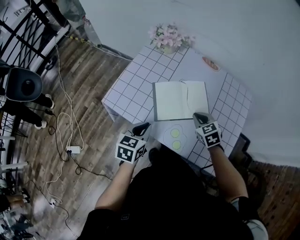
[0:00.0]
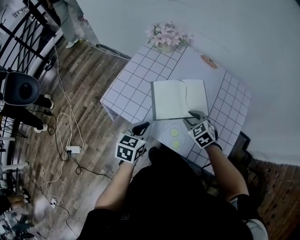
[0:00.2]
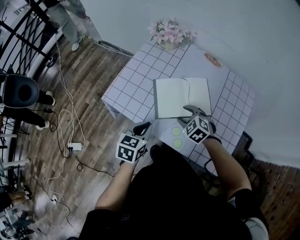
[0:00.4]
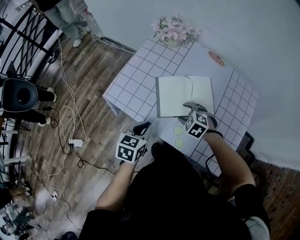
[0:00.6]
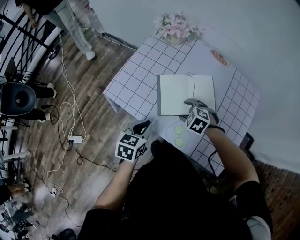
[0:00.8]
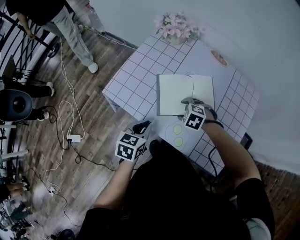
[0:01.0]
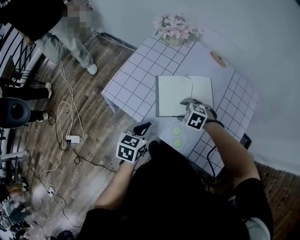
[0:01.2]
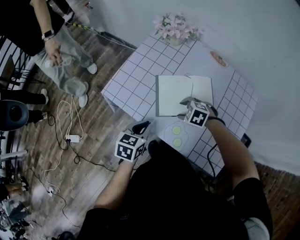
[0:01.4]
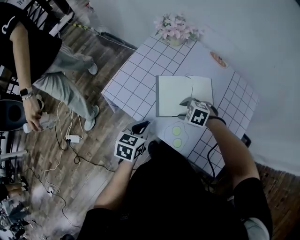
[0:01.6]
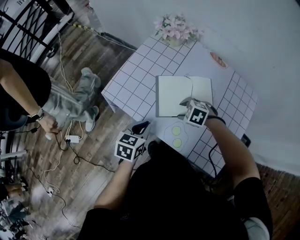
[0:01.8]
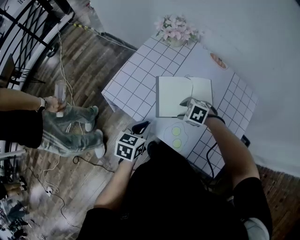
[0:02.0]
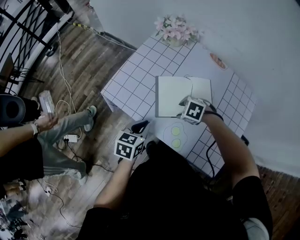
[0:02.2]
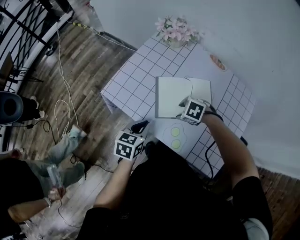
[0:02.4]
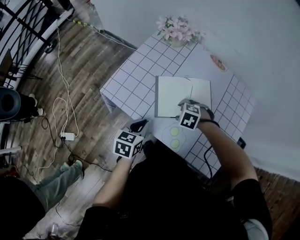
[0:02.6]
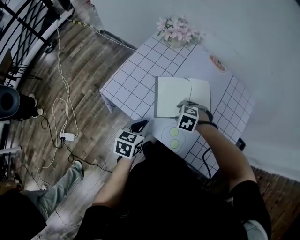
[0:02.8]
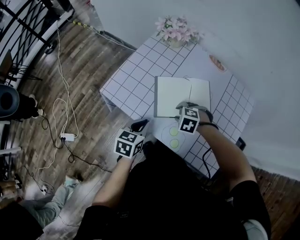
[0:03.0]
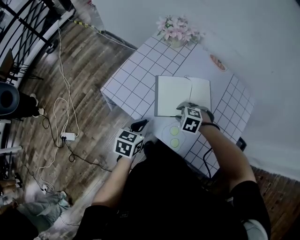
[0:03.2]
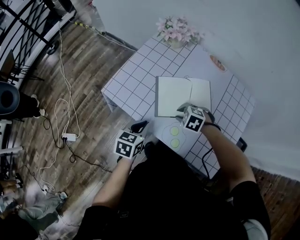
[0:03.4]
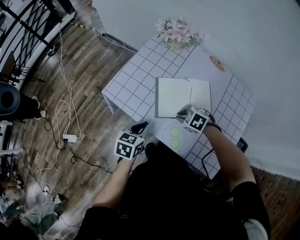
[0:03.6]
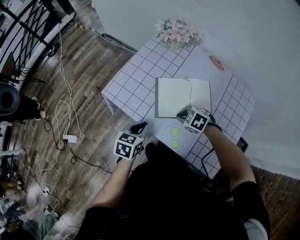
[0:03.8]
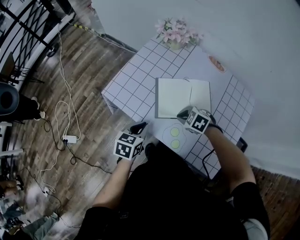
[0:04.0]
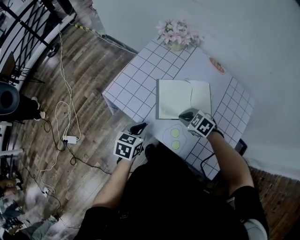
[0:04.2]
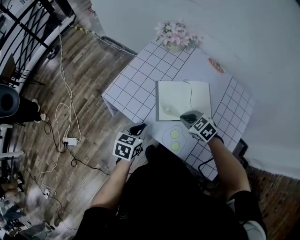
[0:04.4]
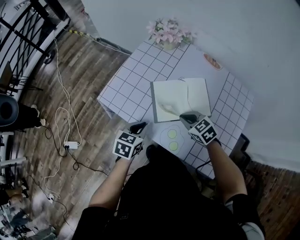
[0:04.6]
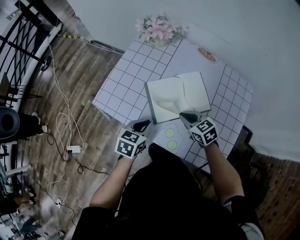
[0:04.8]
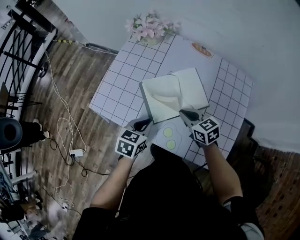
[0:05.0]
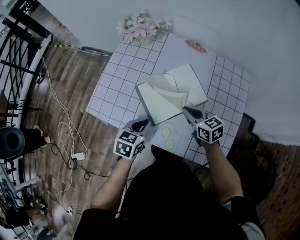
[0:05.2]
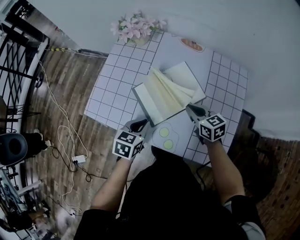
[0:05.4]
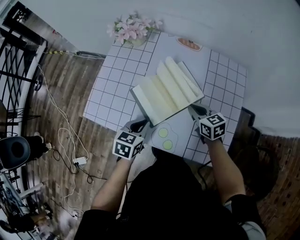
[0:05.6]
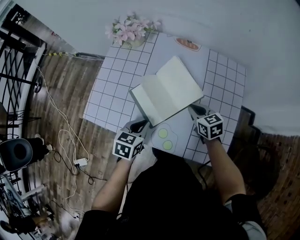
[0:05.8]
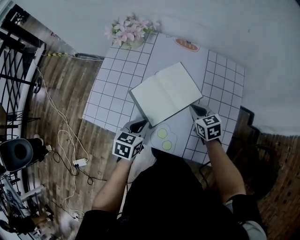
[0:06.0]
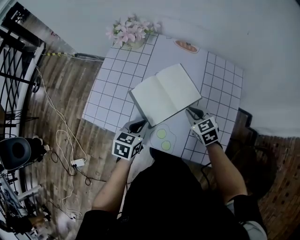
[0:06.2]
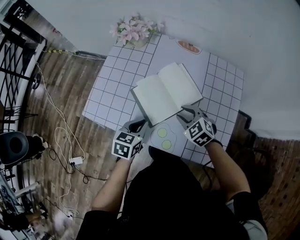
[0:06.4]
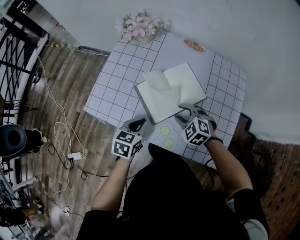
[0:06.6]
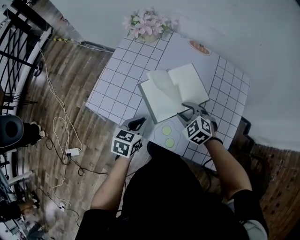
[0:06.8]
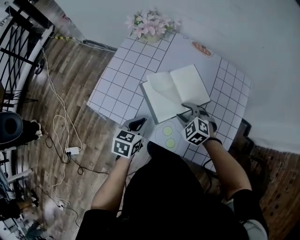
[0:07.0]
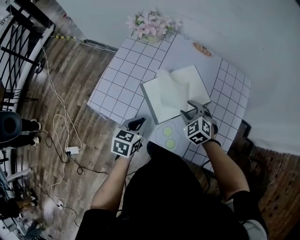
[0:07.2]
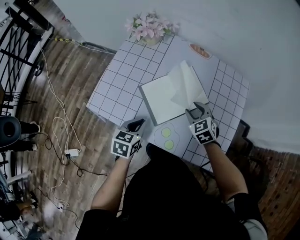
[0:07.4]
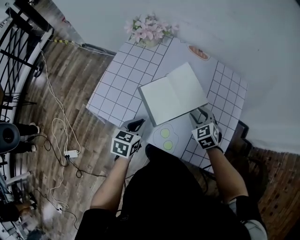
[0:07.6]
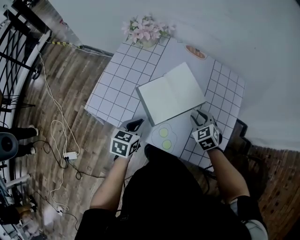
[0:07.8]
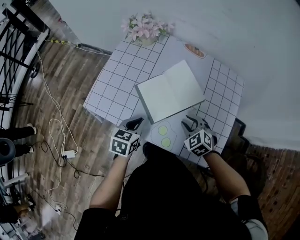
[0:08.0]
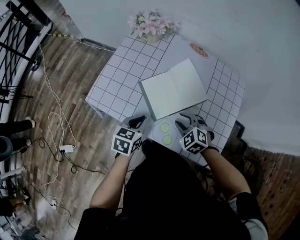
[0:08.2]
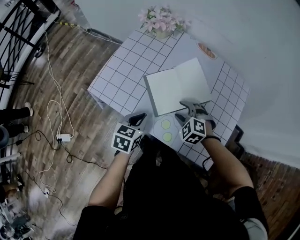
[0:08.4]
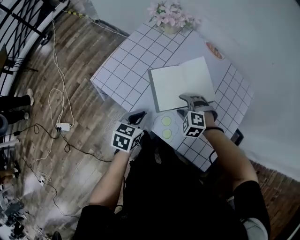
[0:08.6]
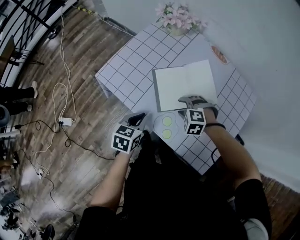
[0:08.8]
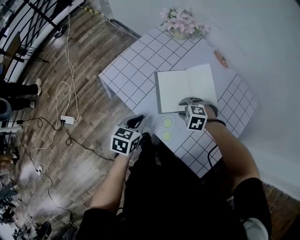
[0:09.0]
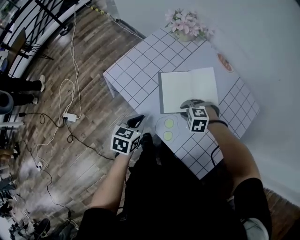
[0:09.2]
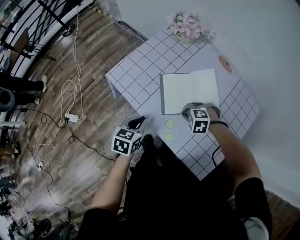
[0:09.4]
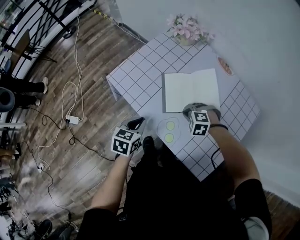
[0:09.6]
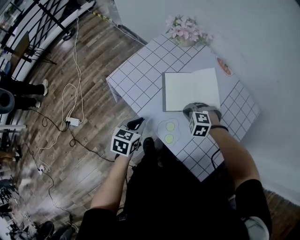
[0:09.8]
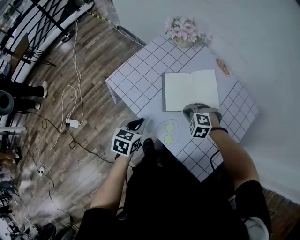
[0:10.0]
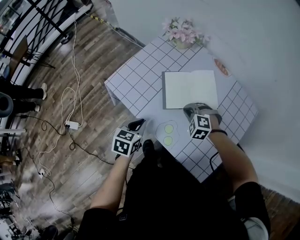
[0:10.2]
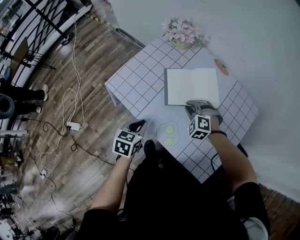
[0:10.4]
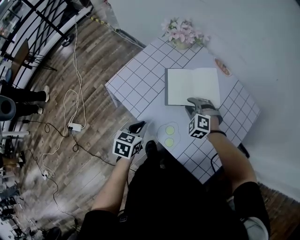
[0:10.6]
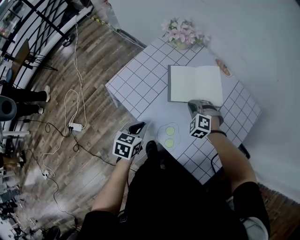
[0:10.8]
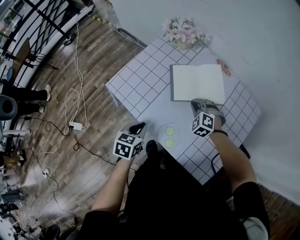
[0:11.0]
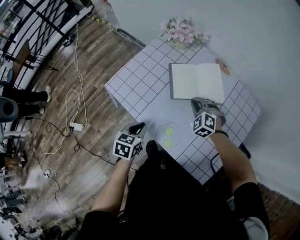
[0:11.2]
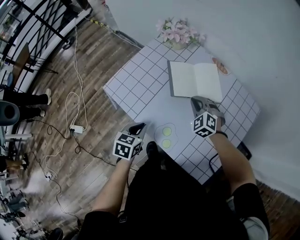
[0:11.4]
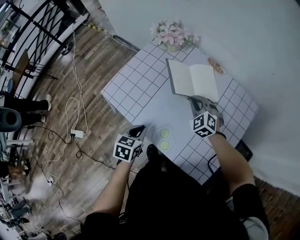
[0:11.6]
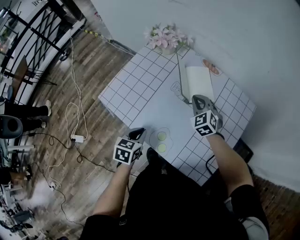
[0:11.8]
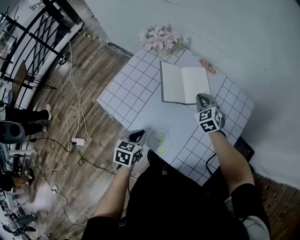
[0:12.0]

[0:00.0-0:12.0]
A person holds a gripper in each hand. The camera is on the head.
0:00.0 to 0:01.6: The right gripper changes place by approximately 10 cm, changes its angle by approximately 50 degrees, and opens up.
0:01.6 to 0:03.0: The grippers stay close to where they were, moving slightly.
0:03.0 to 0:04.4: The right gripper turns by approximately 30 degrees, and closes its fingers.
0:04.4 to 0:06.0: The right gripper shifts by some 15 cm, and rotates some 50 degrees, while the left gripper ends up roughly 10 cm from where it was.
0:06.0 to 0:07.6: The right gripper moves about 10 cm to the left and comes back, turns by some 30 degrees, and opens up.
0:07.6 to 0:09.0: The left gripper ends up some 5 cm from where it was; the right gripper changes place by some 10 cm, and rotates approximately 70 degrees.
0:09.0 to 0:10.4: The right gripper changes place by roughly 5 cm, changes its angle by approximately 30 degrees, and closes up.
0:10.4 to 0:12.0: The right gripper shifts approximately 15 cm to the right, forward and upward, and twists approximately 40 degrees clockwise, seen from behind; the left gripper moves to the right, approximately 5 cm.

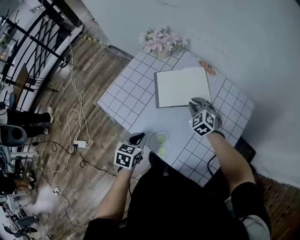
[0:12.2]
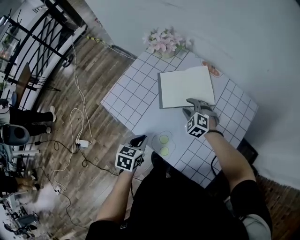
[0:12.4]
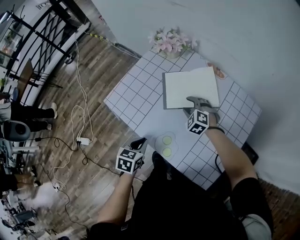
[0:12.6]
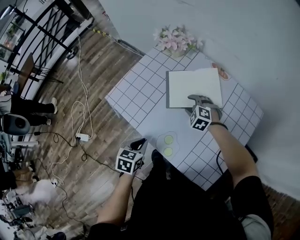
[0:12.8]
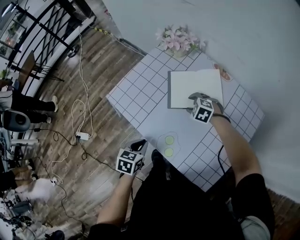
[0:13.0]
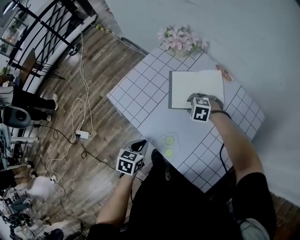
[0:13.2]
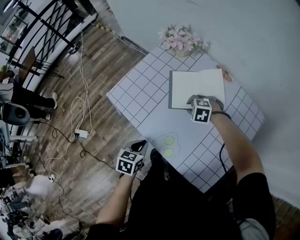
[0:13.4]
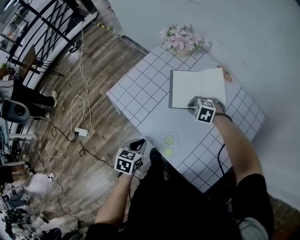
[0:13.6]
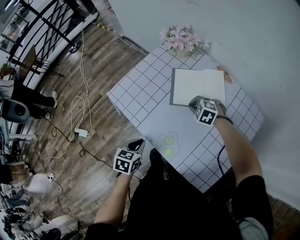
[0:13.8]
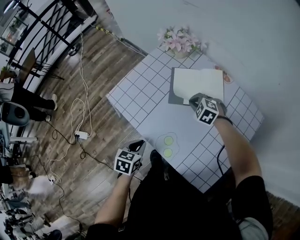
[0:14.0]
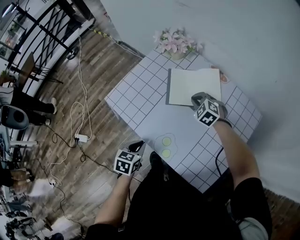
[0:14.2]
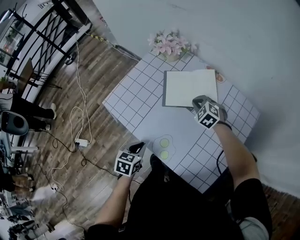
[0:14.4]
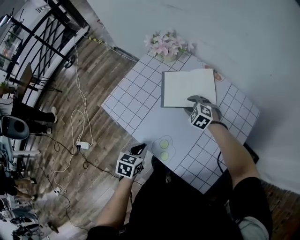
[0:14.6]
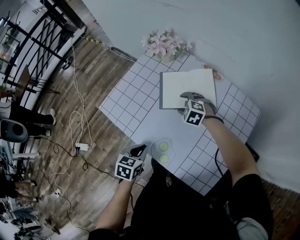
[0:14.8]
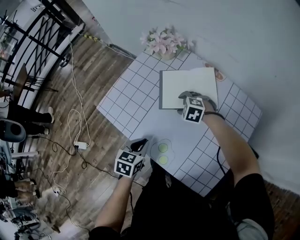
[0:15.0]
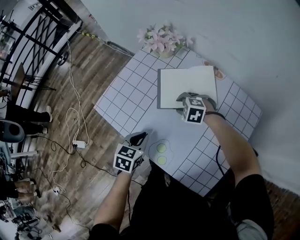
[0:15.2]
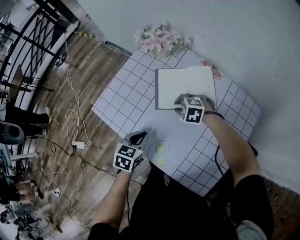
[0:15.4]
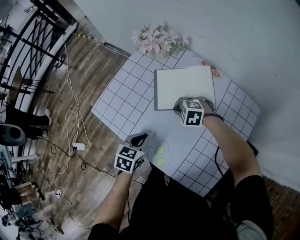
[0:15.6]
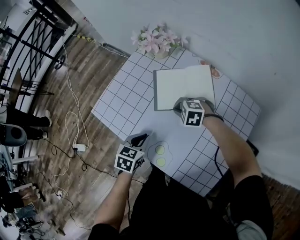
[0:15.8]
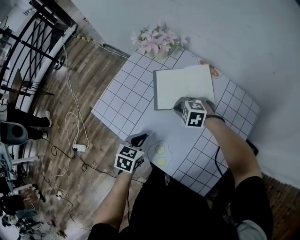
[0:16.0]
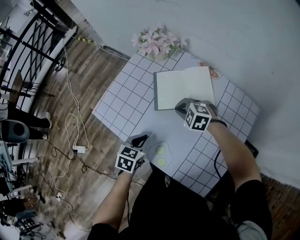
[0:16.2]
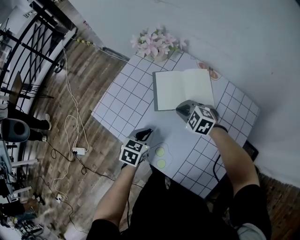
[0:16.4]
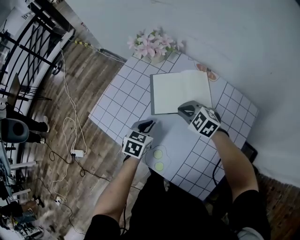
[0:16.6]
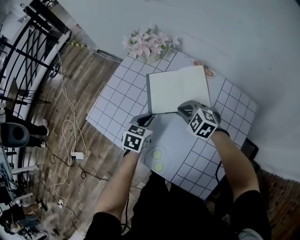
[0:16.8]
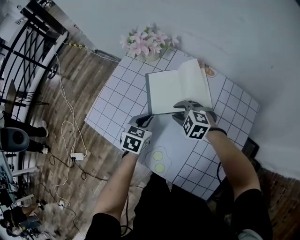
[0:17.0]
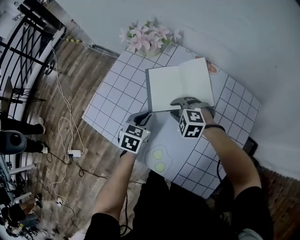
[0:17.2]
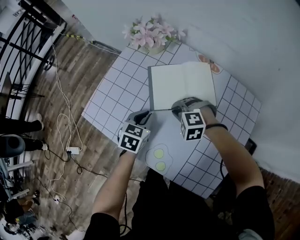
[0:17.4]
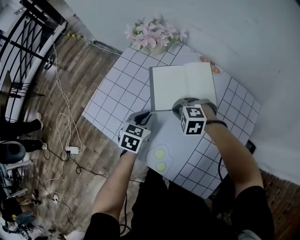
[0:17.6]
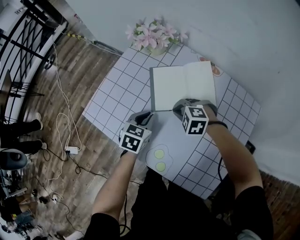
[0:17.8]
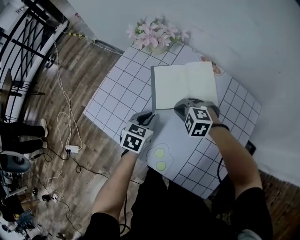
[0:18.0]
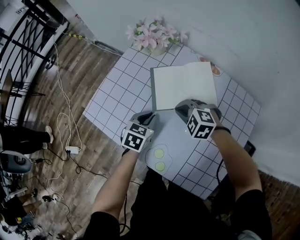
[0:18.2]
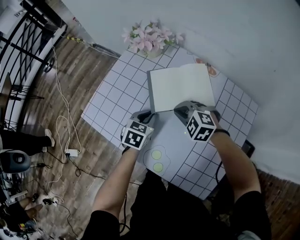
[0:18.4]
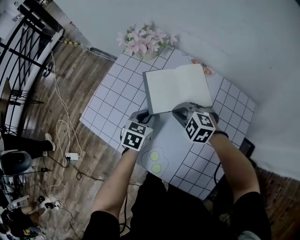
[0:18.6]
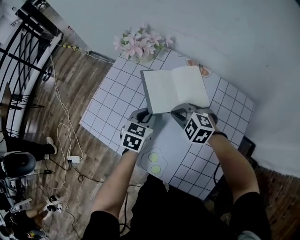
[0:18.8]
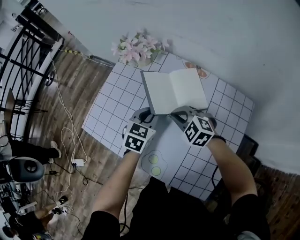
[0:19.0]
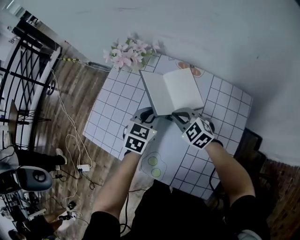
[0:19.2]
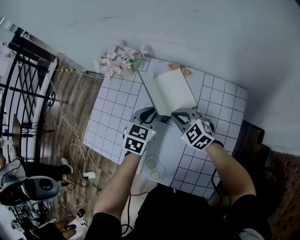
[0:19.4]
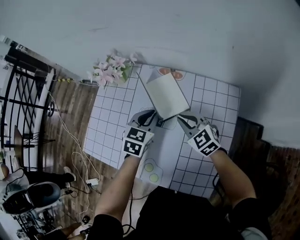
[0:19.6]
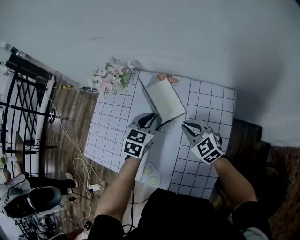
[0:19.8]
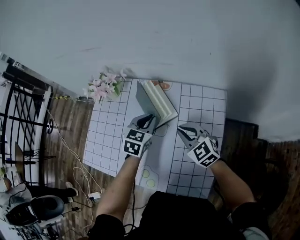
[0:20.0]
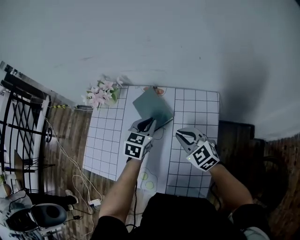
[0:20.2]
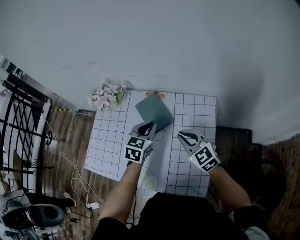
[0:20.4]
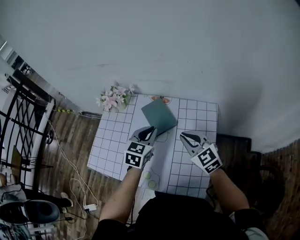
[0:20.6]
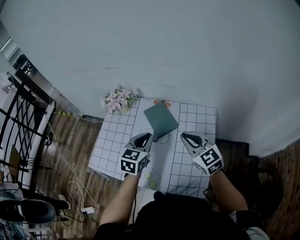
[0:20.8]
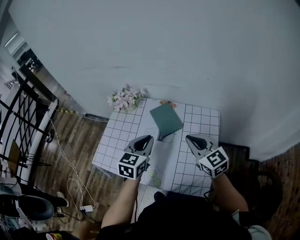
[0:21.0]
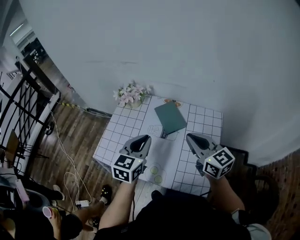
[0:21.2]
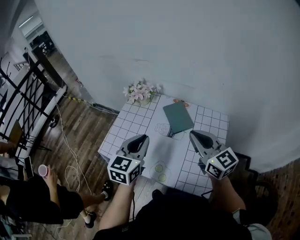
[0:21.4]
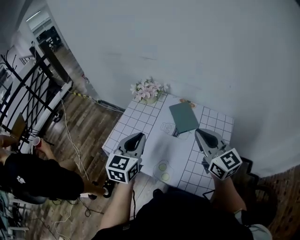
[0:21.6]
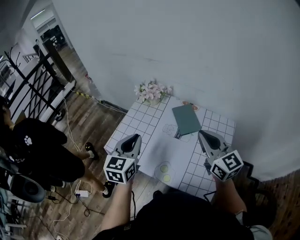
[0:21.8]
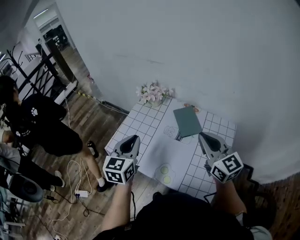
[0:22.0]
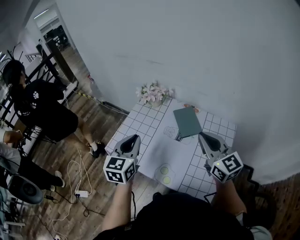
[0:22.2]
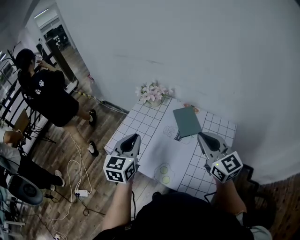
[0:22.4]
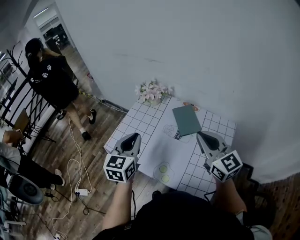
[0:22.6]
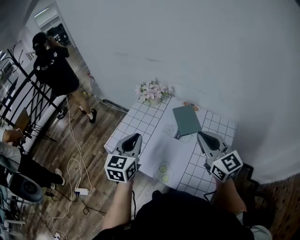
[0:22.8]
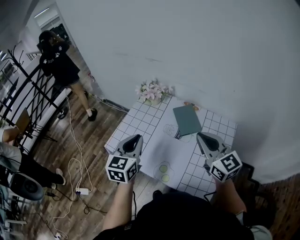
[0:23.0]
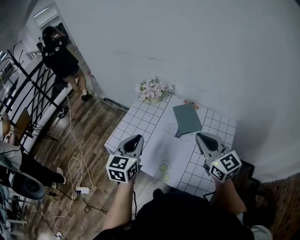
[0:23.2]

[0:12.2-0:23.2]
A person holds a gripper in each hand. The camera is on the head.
0:12.2 to 0:13.8: The right gripper moves roughly 10 cm, turns by some 40 degrees, and opens, then closes again. The left gripper moves about 5 cm.
0:13.8 to 0:15.4: The left gripper heads forward and to the right, covering some 10 cm. Meanwhile the right gripper opens and closes again.
0:15.4 to 0:17.0: The left gripper goes roughly 10 cm forward and to the right.
0:17.0 to 0:18.4: The right gripper closes.
0:18.4 to 0:20.0: The grippers both shift to the right and upward by about 20 cm. The left gripper rotates about 20 degrees. The right gripper rotates about 50 degrees.
0:20.0 to 0:21.6: The right gripper heads upward and backward, covering roughly 25 cm, and rotates some 30 degrees. Meanwhile the left gripper goes some 35 cm upward, to the left and backward, and turns by some 30 degrees.
0:21.6 to 0:23.2: There are only small adjustments of the grippers.

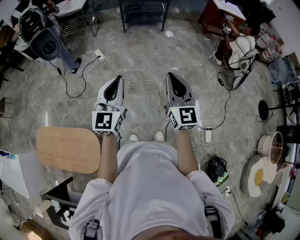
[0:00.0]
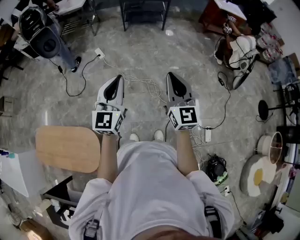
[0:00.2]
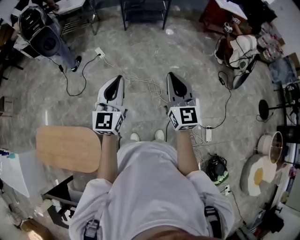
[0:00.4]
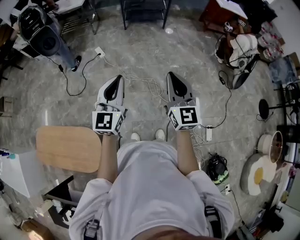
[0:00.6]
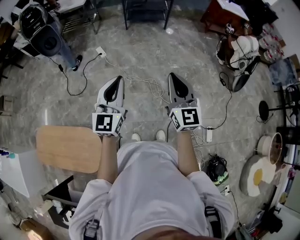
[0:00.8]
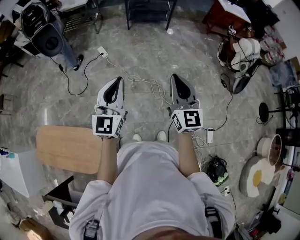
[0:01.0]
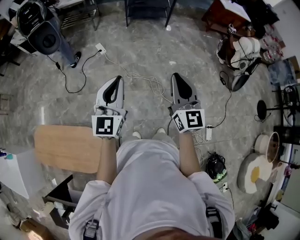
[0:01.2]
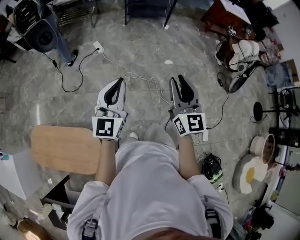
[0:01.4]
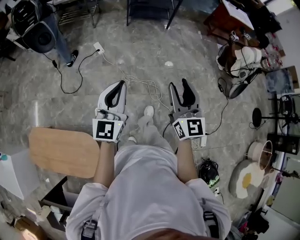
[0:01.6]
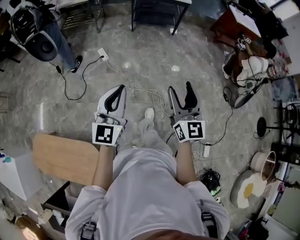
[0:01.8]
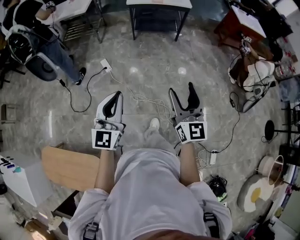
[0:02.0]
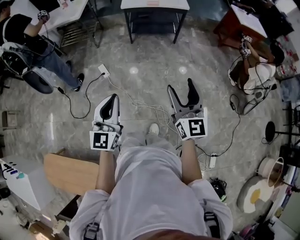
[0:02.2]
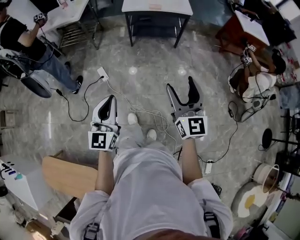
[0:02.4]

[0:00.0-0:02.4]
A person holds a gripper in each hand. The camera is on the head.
0:00.0 to 0:01.2: The two grippers go approximately 10 cm to the left.
0:01.2 to 0:02.4: Both grippers travel together forward, some 40 cm. The right gripper opens up.
